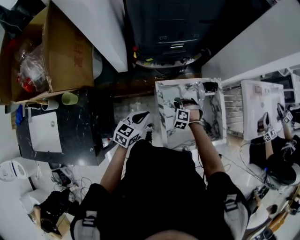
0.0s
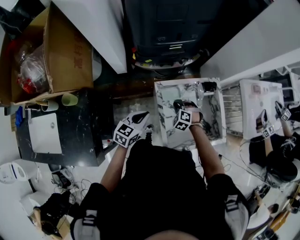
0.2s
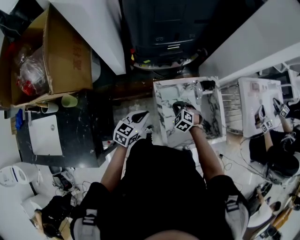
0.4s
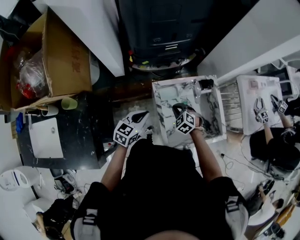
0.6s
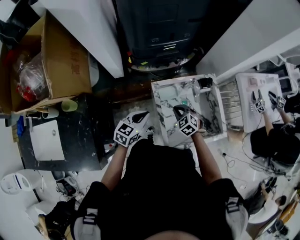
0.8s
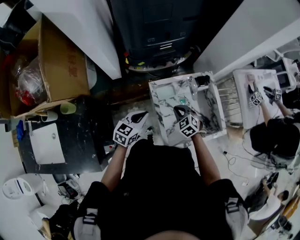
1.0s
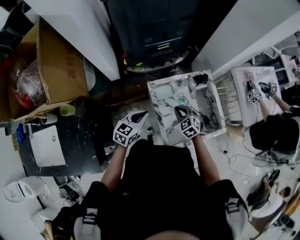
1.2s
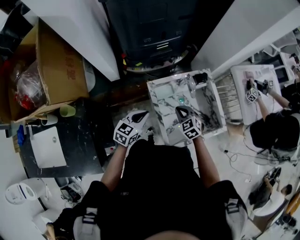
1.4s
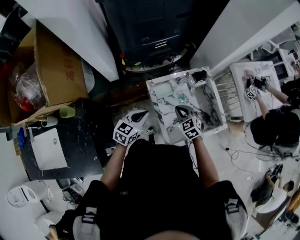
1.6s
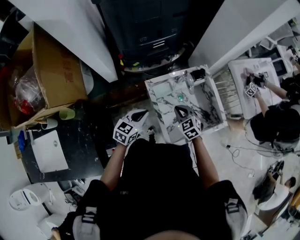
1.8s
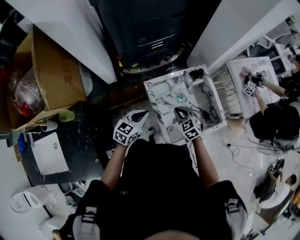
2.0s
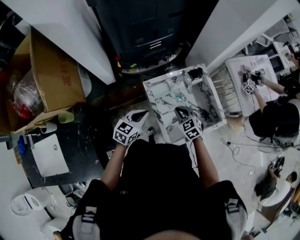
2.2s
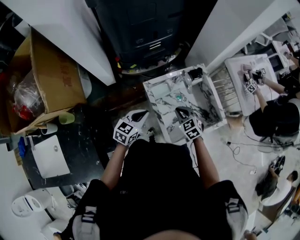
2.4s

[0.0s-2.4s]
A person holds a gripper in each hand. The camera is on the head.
0.0s to 1.2s: The right gripper shifts some 10 cm upward and backward, and rolls clockwise, seen from behind, by about 40 degrees.
1.2s to 2.4s: The grippers make only small movements.

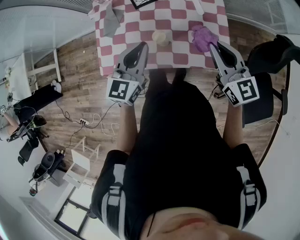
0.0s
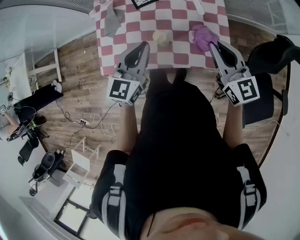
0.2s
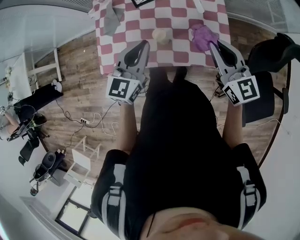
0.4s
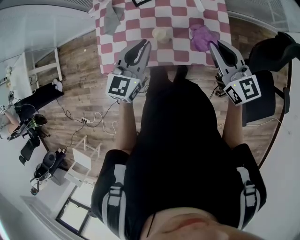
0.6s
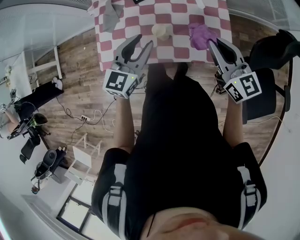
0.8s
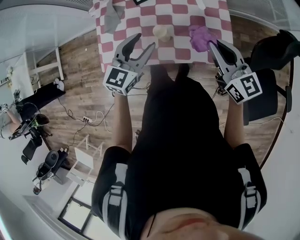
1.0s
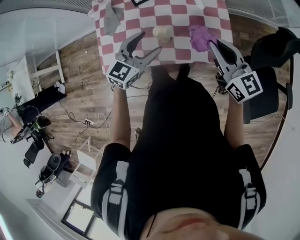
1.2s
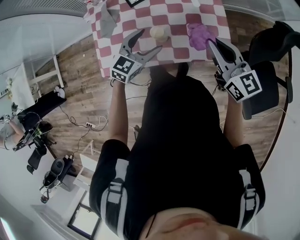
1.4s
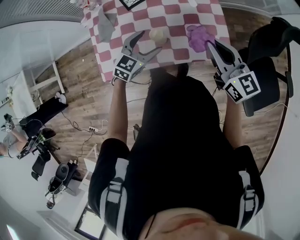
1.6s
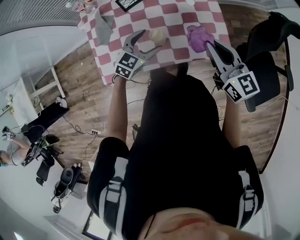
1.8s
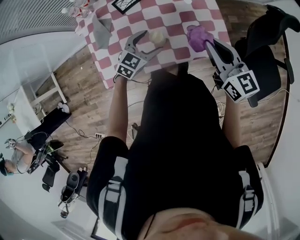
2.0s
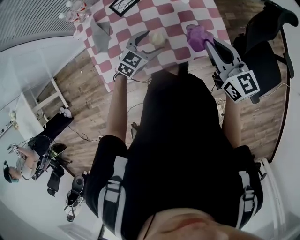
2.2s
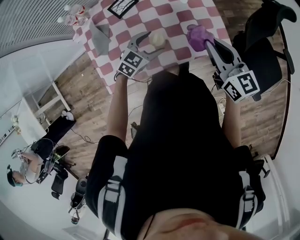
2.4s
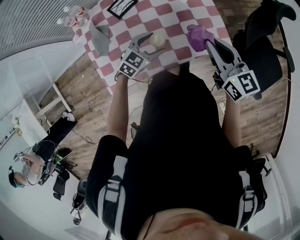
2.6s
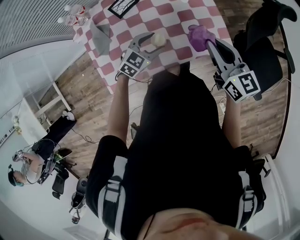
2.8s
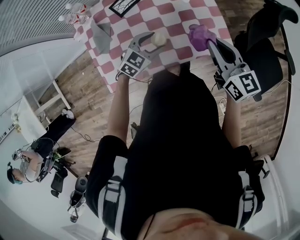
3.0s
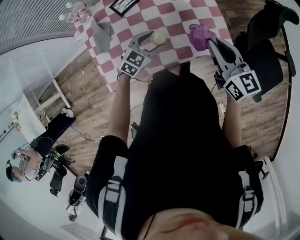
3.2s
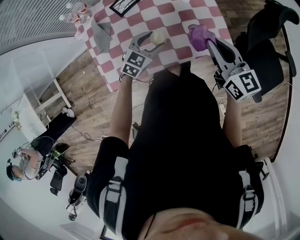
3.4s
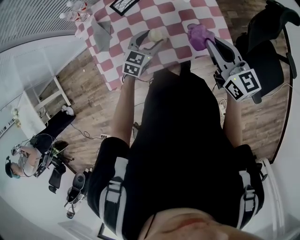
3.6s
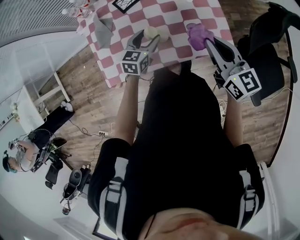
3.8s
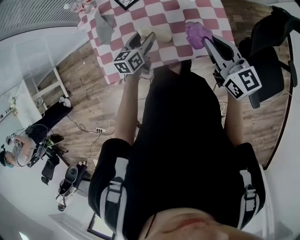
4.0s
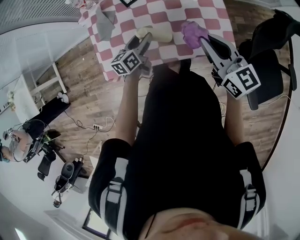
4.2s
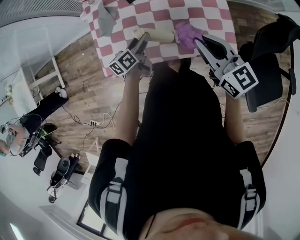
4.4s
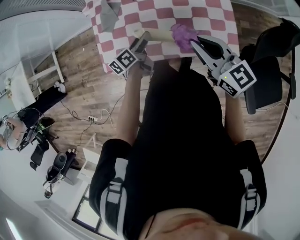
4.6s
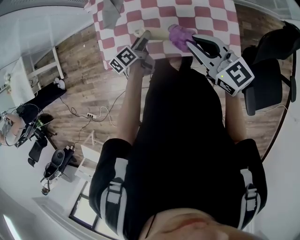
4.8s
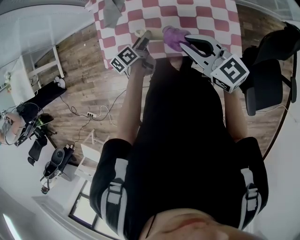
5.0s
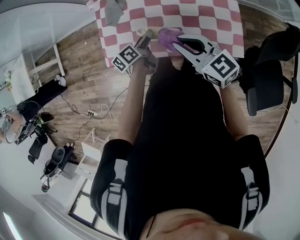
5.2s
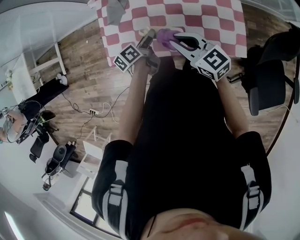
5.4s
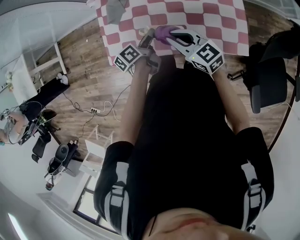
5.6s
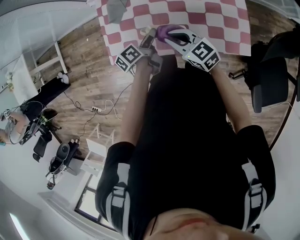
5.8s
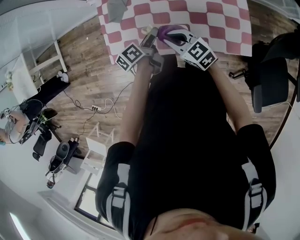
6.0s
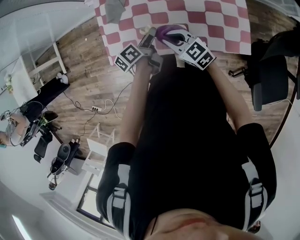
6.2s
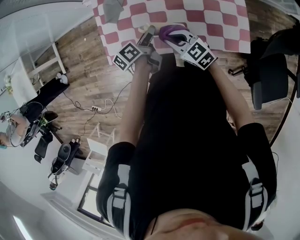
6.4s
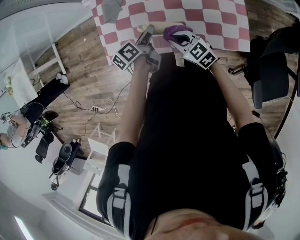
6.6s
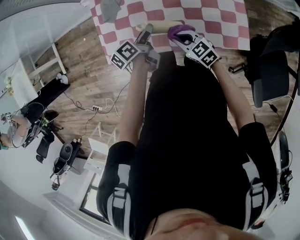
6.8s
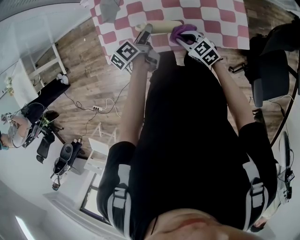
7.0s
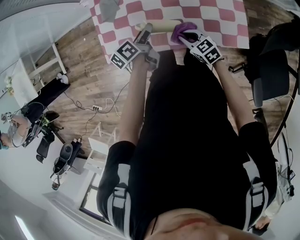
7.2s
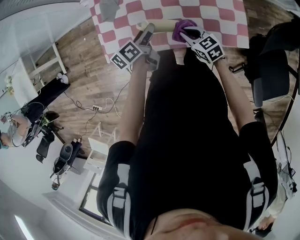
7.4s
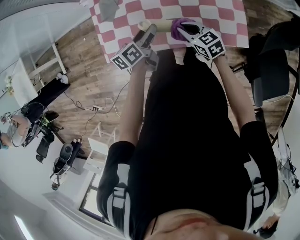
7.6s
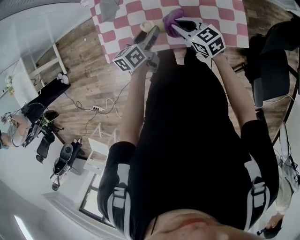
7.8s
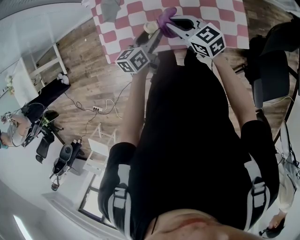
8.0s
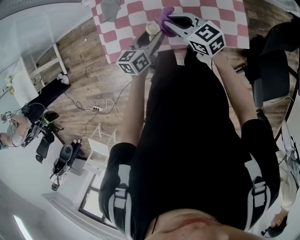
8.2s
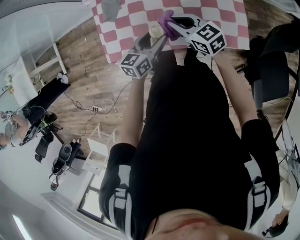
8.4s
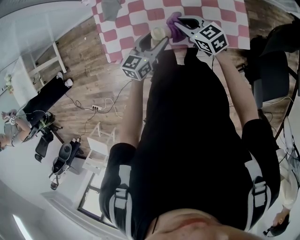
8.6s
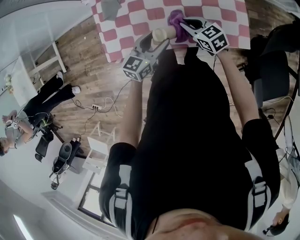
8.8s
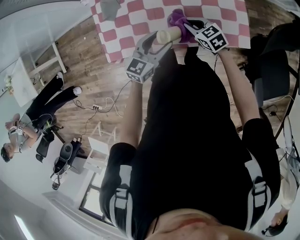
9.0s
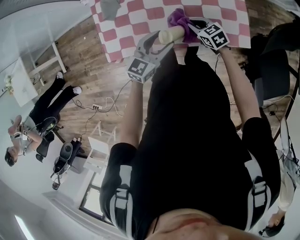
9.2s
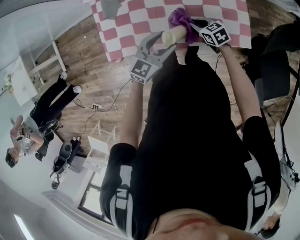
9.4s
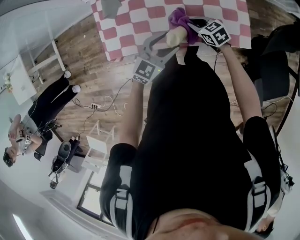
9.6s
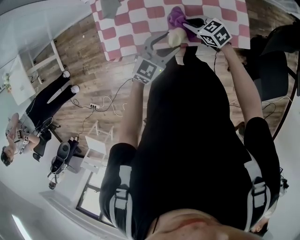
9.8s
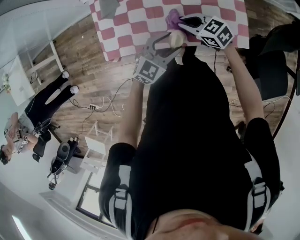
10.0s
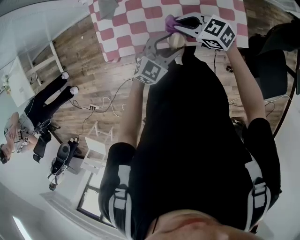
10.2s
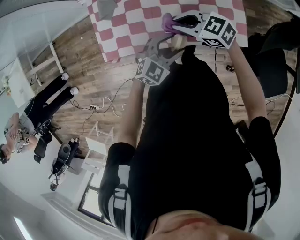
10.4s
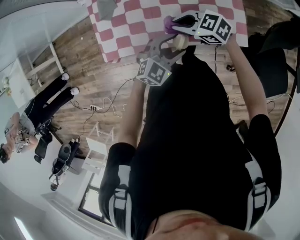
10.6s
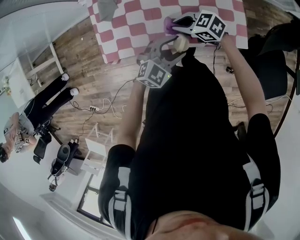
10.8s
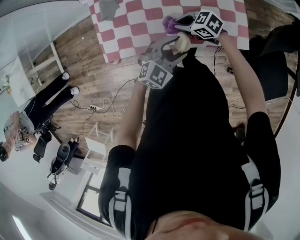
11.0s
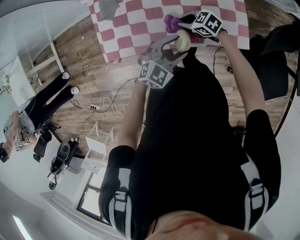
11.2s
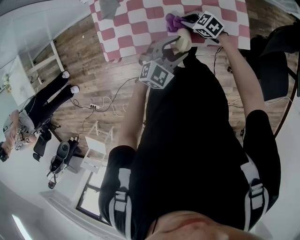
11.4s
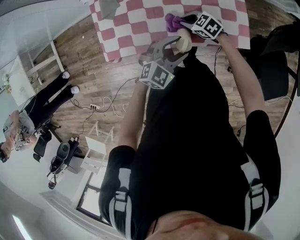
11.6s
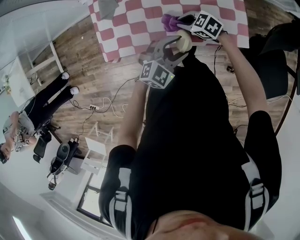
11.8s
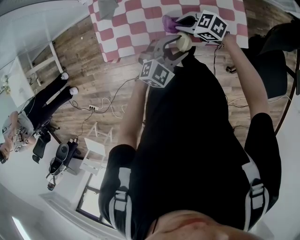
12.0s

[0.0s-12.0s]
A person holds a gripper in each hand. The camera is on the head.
0.0s to 1.6s: The left gripper goes roughly 15 cm downward, turns by approximately 30 degrees, and opens.
3.0s to 4.4s: The left gripper ends up approximately 10 cm from where it was, and rotates around the line of its fingers by approximately 70 degrees, counterclockwise from behind; the right gripper shifts by approximately 5 cm, and swivels about 20 degrees.
4.4s to 6.0s: The left gripper turns by roughly 20 degrees. Meanwhile the right gripper travels to the left and downward by roughly 25 cm, and changes its angle by approximately 30 degrees.
6.0s to 7.6s: The right gripper is displaced to the right and downward by roughly 10 cm. Meanwhile the left gripper swivels approximately 20 degrees.
7.6s to 9.0s: The left gripper shifts some 5 cm backward, and rolls clockwise, seen from behind, by about 50 degrees; the right gripper travels upward and back again, some 10 cm each way.
9.0s to 10.4s: The left gripper shifts by some 5 cm, and turns by approximately 30 degrees, while the right gripper goes roughly 15 cm upward, and changes its angle by roughly 30 degrees.
10.4s to 12.0s: The right gripper is displaced downward by some 10 cm.

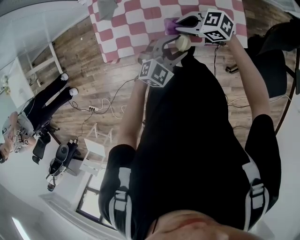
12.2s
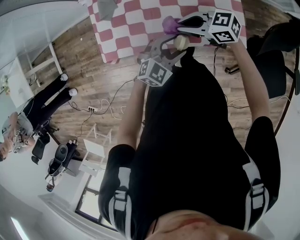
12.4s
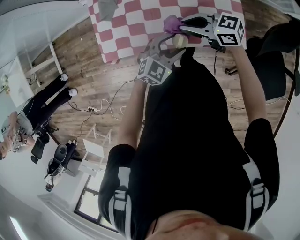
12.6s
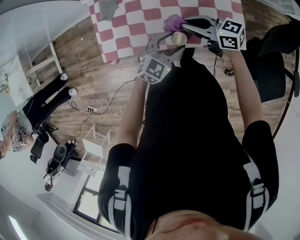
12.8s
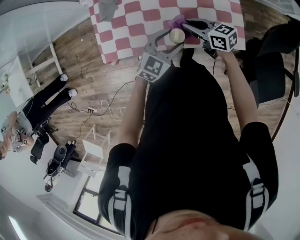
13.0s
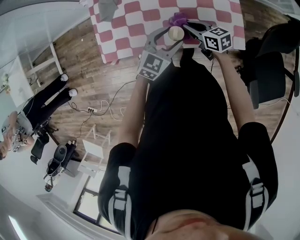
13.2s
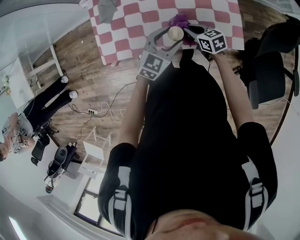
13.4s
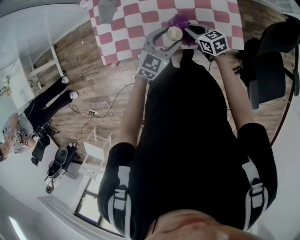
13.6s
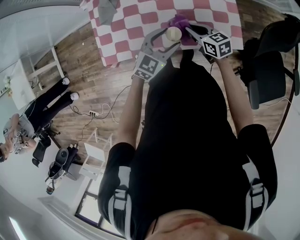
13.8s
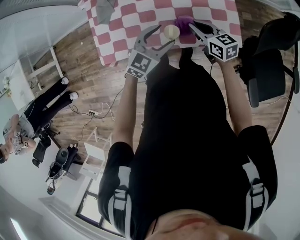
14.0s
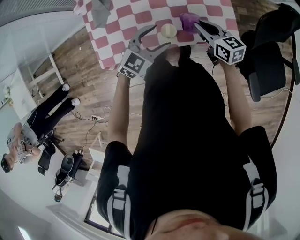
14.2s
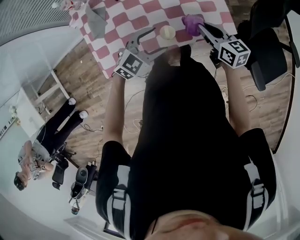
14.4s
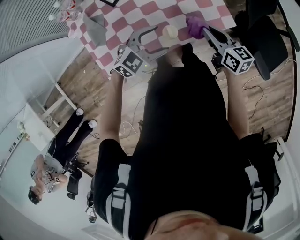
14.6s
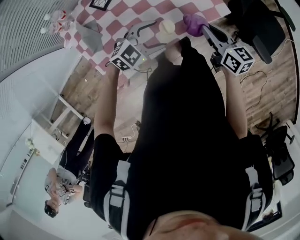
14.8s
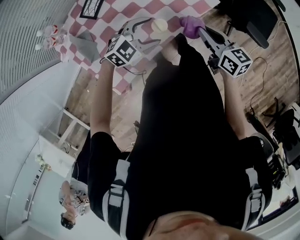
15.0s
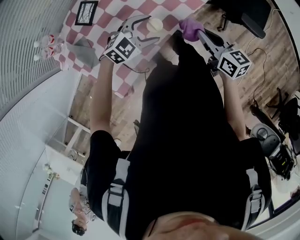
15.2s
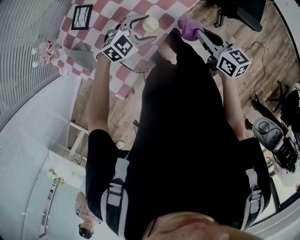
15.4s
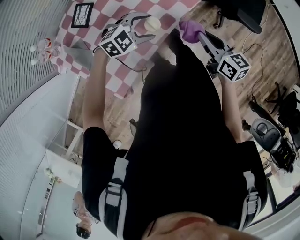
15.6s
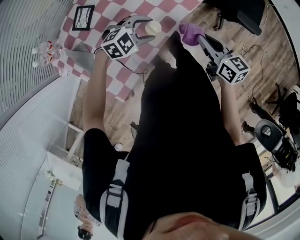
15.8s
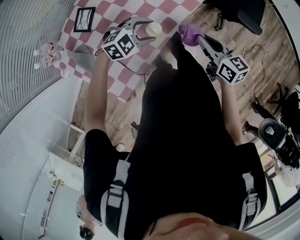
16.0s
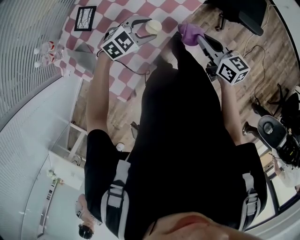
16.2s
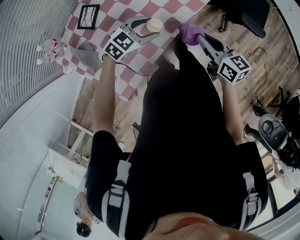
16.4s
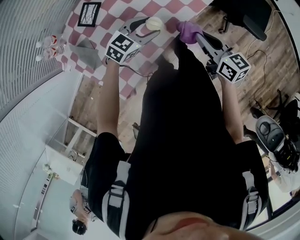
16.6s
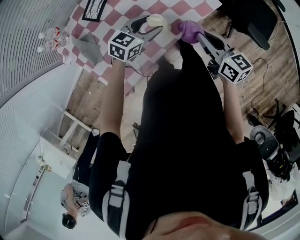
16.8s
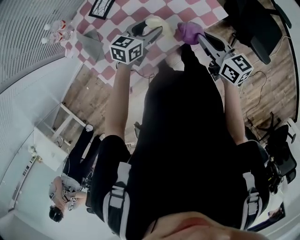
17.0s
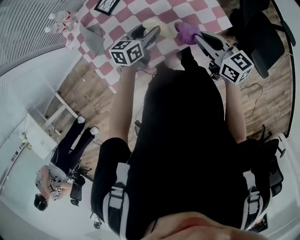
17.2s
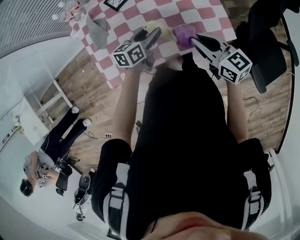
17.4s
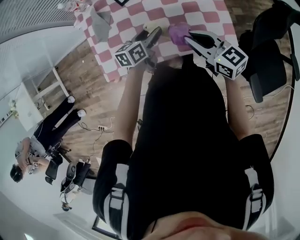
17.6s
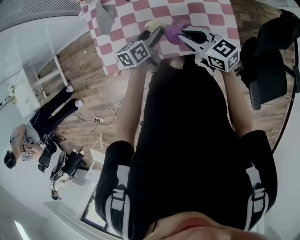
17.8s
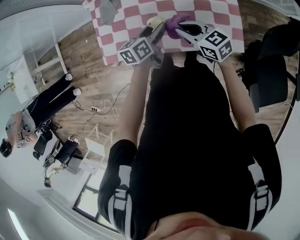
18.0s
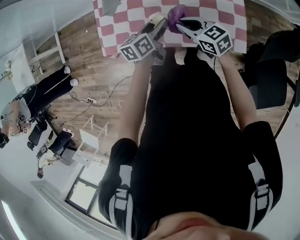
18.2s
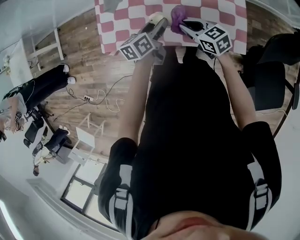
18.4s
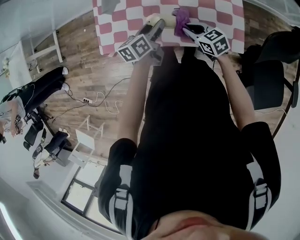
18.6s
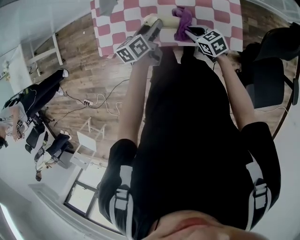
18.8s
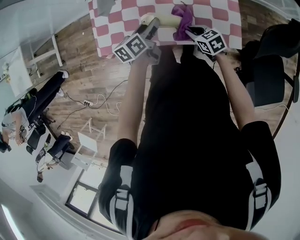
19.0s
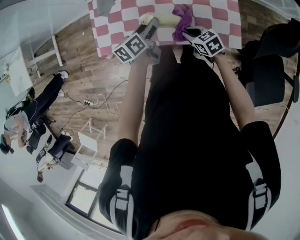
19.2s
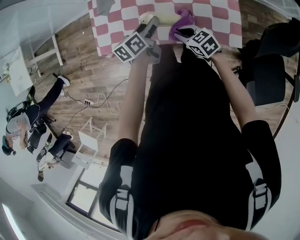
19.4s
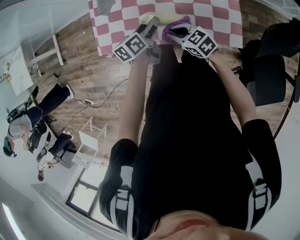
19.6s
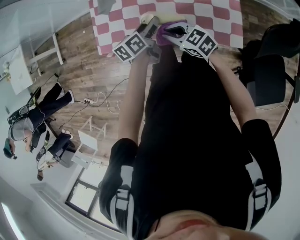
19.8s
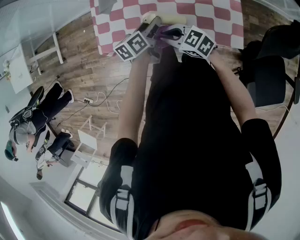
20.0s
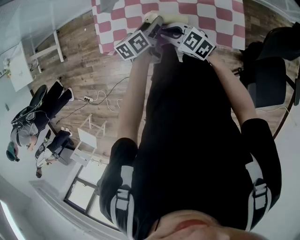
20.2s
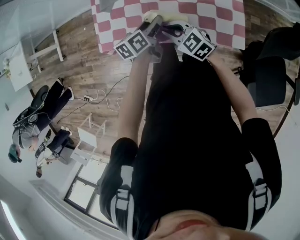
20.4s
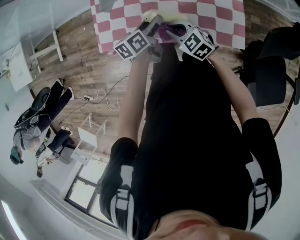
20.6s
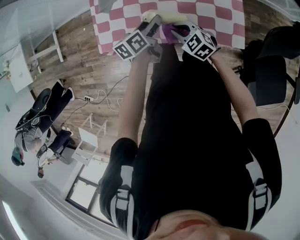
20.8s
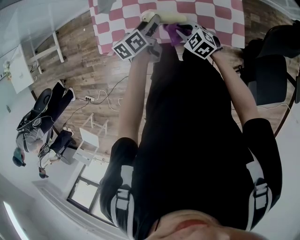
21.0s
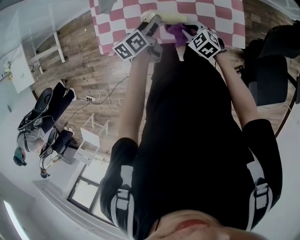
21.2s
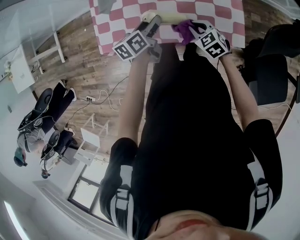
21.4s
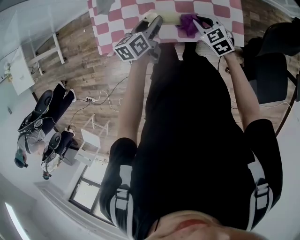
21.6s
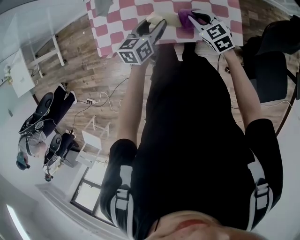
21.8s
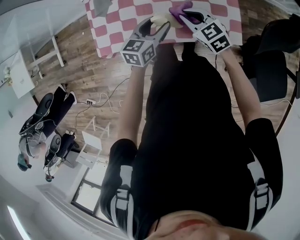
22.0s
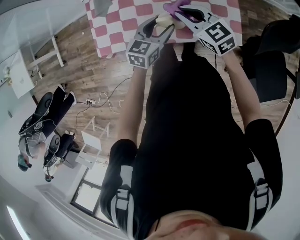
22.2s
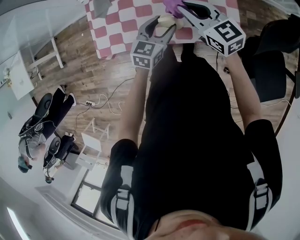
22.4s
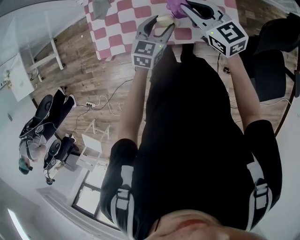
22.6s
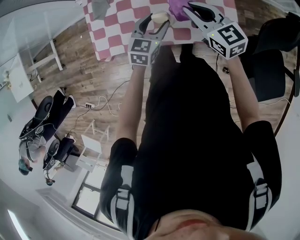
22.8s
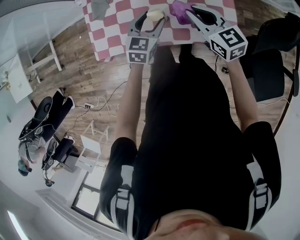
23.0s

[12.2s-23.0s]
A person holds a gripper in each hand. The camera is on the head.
12.2s to 13.8s: The right gripper moves up and down over about 15 cm, changing direction 2 times, and turns by some 40 degrees.
13.8s to 15.2s: The right gripper changes place by about 20 cm, and rotates approximately 60 degrees. Meanwhile the left gripper turns by approximately 60 degrees.
15.2s to 16.8s: The left gripper changes place by about 5 cm, and swivels roughly 40 degrees.
16.8s to 18.4s: The right gripper ends up some 15 cm from where it was, and rotates some 70 degrees; the left gripper changes place by about 5 cm, and swivels about 90 degrees.
18.4s to 20.0s: The right gripper shifts roughly 10 cm to the left, and swivels some 20 degrees.
20.0s to 21.4s: The right gripper heads to the right and downward, covering some 15 cm, and swivels some 30 degrees.
21.4s to 23.0s: The left gripper heads to the right, covering approximately 5 cm, and rolls clockwise, seen from behind, by roughly 50 degrees. Meanwhile the right gripper goes about 15 cm upward, and turns by approximately 30 degrees.
